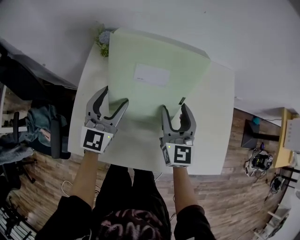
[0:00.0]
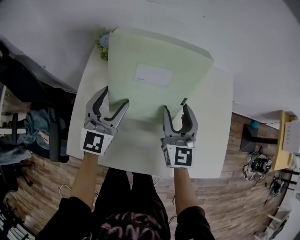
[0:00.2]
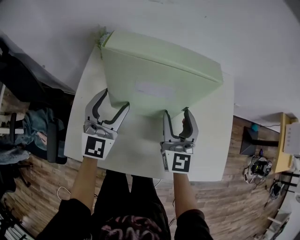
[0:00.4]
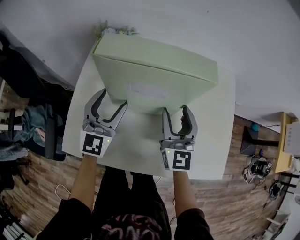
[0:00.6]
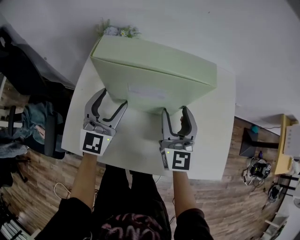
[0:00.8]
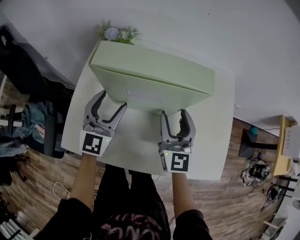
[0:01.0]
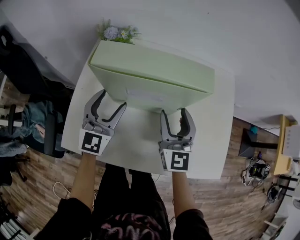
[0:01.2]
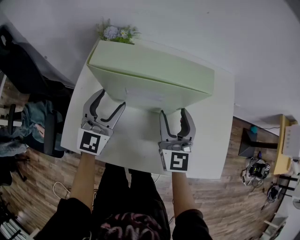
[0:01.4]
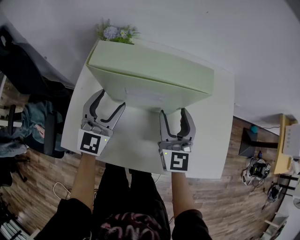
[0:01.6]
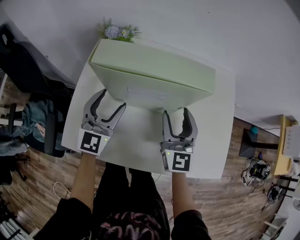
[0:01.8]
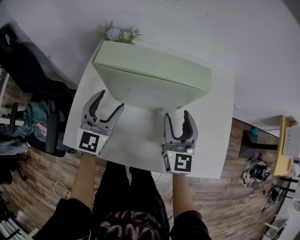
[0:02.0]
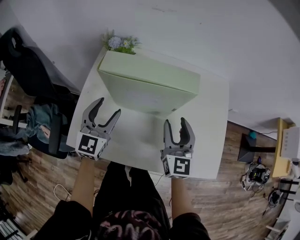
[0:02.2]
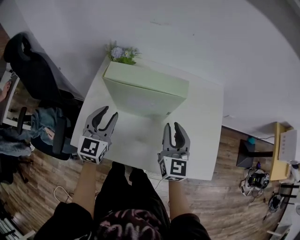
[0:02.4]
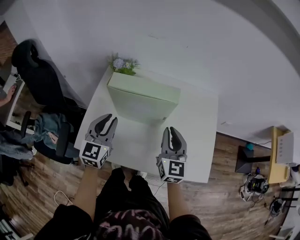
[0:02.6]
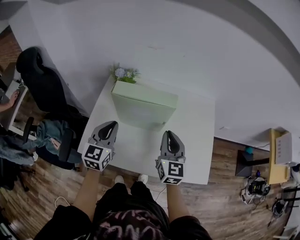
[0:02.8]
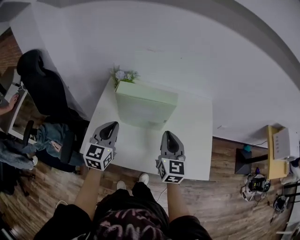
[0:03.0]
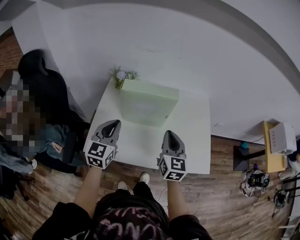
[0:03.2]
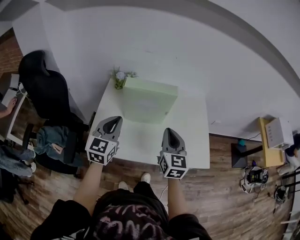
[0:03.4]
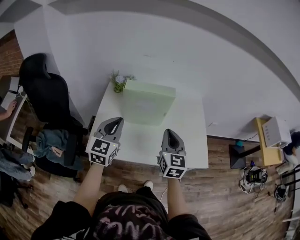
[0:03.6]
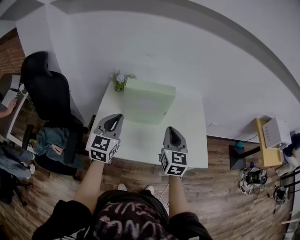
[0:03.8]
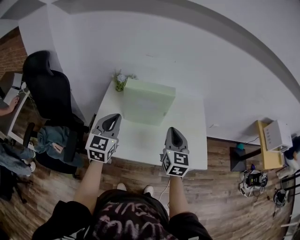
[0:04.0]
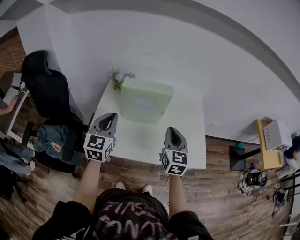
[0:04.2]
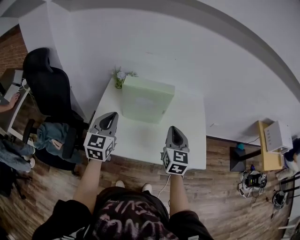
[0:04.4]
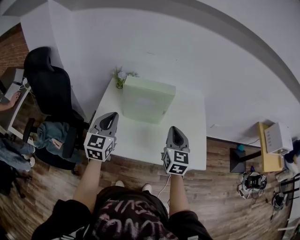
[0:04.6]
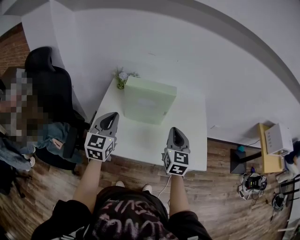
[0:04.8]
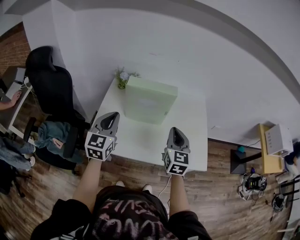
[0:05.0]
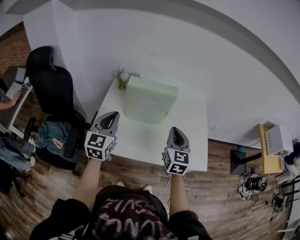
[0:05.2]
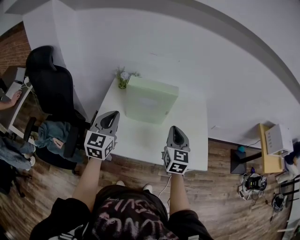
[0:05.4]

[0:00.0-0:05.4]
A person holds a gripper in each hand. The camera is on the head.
0:00.0 to 0:01.4: The grippers stay close to where they were, moving slightly.
0:01.4 to 0:02.8: Both grippers travel together upward and backward, roughly 10 cm. The left gripper closes its fingers. The right gripper closes up.
0:02.8 to 0:04.0: The left gripper travels upward and backward by approximately 10 cm; the right gripper travels backward and upward by roughly 10 cm.
0:04.0 to 0:05.4: The grippers move only a little.

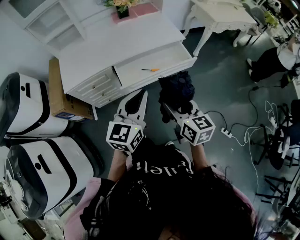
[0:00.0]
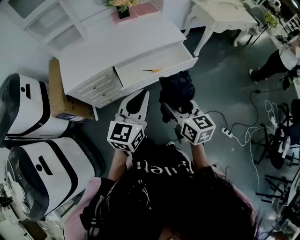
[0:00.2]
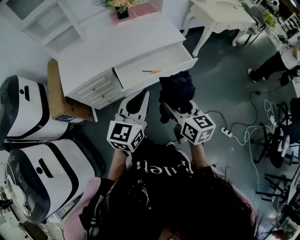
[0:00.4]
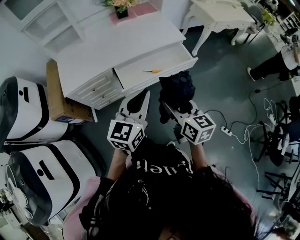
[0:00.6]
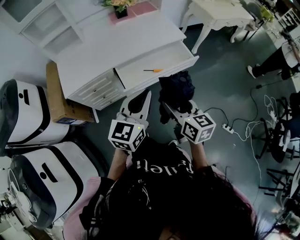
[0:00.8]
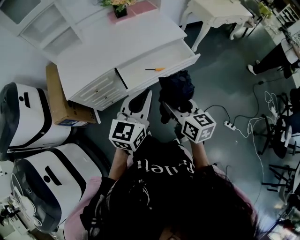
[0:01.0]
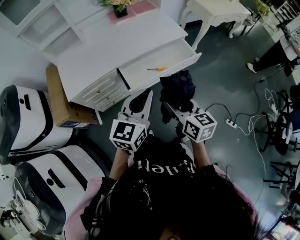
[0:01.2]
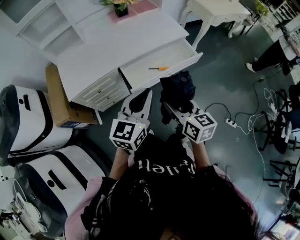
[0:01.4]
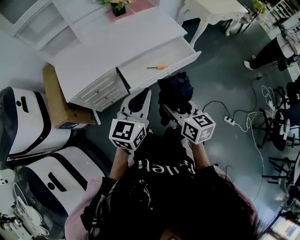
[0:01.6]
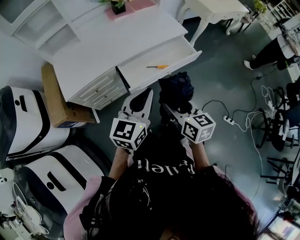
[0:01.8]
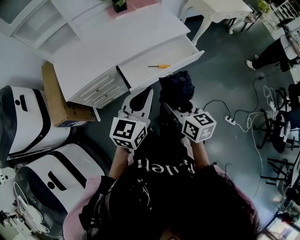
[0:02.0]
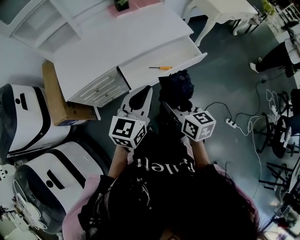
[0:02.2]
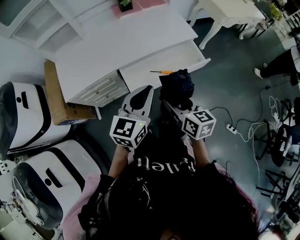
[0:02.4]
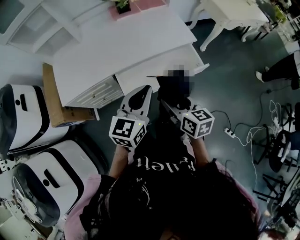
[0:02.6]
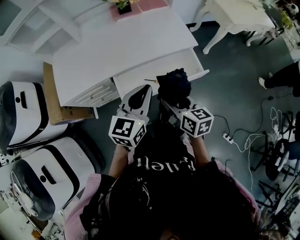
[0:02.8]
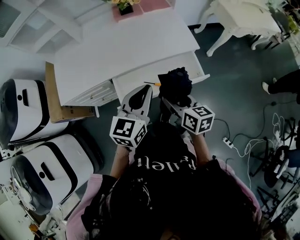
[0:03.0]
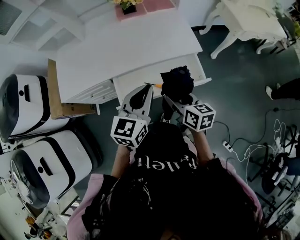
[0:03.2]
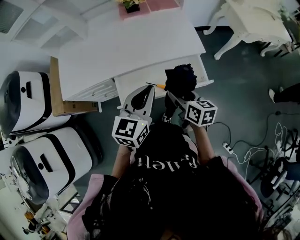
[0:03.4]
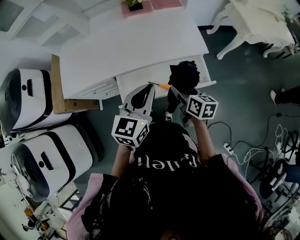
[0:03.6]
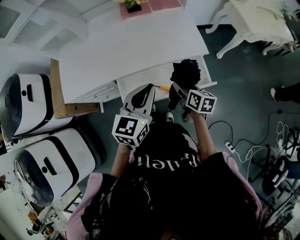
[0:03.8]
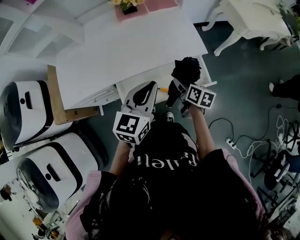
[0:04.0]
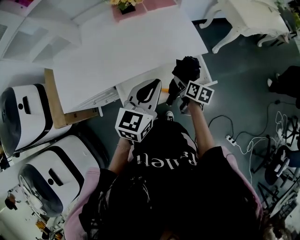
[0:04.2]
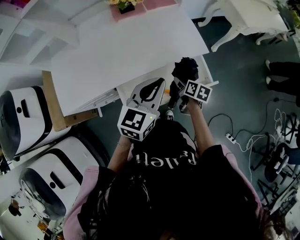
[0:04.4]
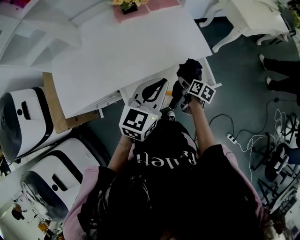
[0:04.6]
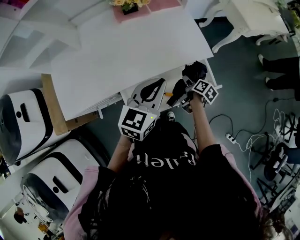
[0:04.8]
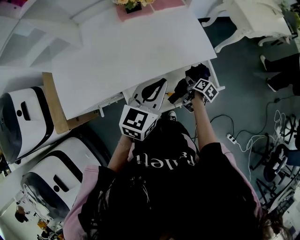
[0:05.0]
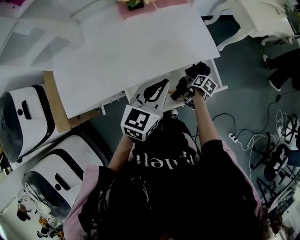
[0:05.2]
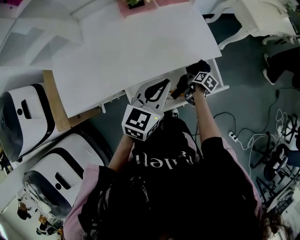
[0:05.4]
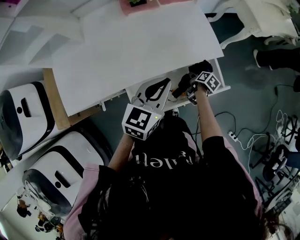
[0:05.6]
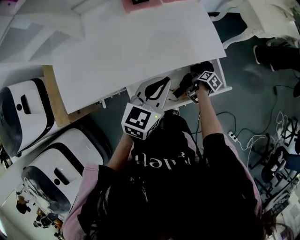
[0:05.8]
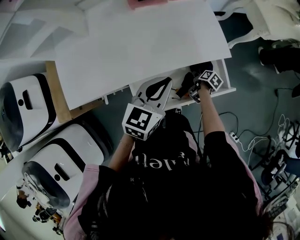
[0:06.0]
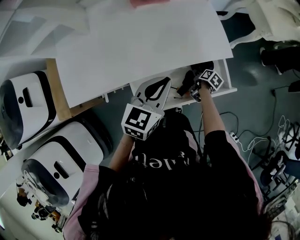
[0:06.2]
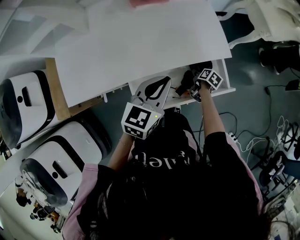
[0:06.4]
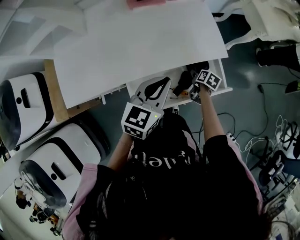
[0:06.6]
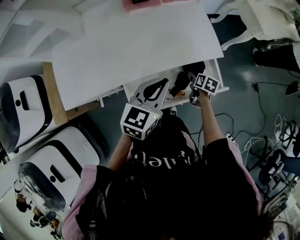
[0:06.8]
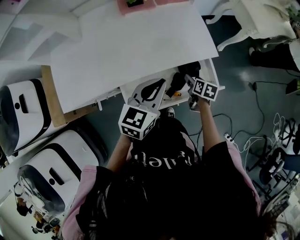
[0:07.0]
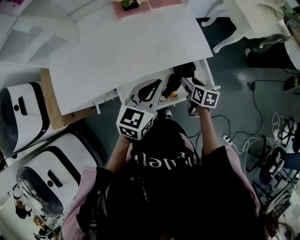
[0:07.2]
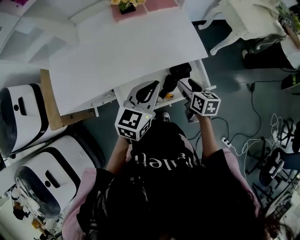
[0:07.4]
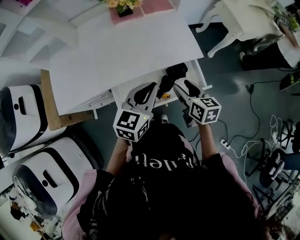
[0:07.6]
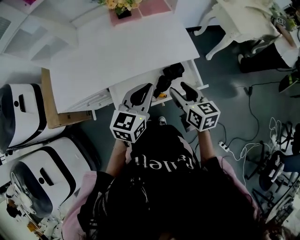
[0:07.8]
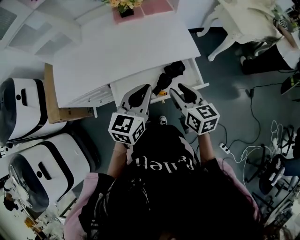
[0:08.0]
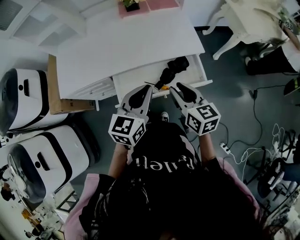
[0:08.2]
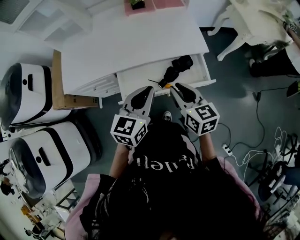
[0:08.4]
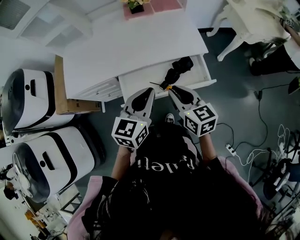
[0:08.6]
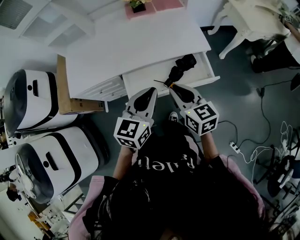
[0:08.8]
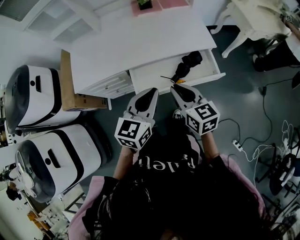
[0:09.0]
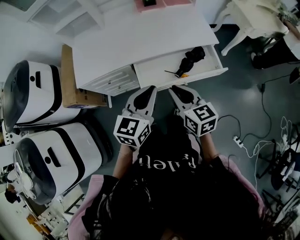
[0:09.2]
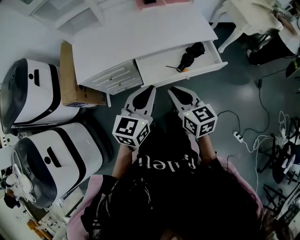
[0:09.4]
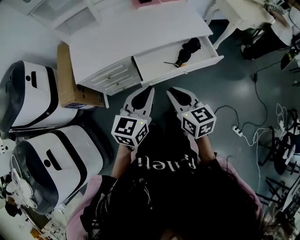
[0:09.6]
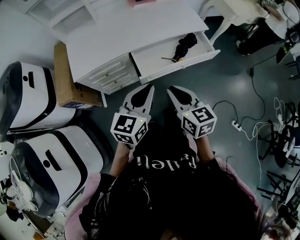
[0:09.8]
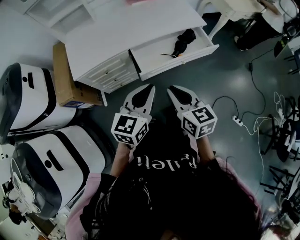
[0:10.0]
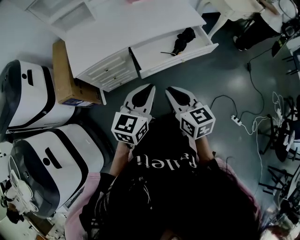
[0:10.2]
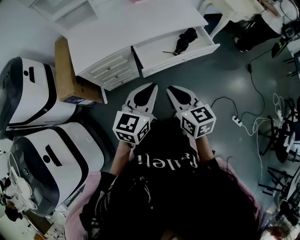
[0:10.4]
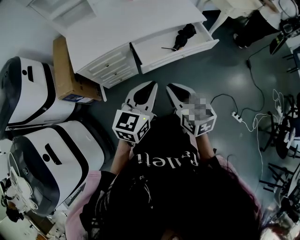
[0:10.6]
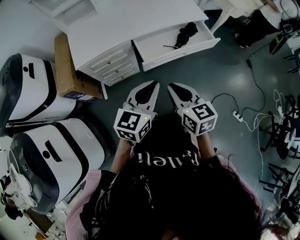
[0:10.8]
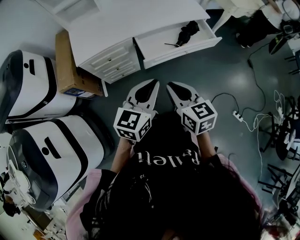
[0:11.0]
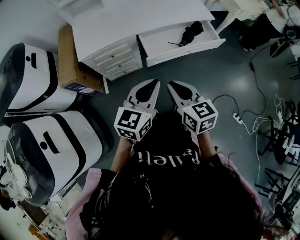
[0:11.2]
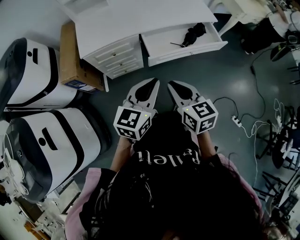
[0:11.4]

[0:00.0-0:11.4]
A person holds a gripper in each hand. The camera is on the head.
0:00.0 to 0:01.4: Both grippers move to the left, about 10 cm.
0:01.4 to 0:02.8: Both grippers travel together forward and to the right, approximately 20 cm.
0:02.8 to 0:04.2: The left gripper heads forward, covering about 10 cm. Meanwhile the right gripper is displaced forward, downward and to the right by roughly 25 cm, and turns by about 30 degrees.
0:04.2 to 0:05.6: The right gripper moves downward, approximately 15 cm, and swivels roughly 30 degrees, while the left gripper is displaced to the left and forward by approximately 10 cm.
0:05.6 to 0:07.2: The right gripper goes some 15 cm upward, and rotates about 40 degrees.
0:07.2 to 0:08.6: The right gripper heads upward, backward and to the left, covering roughly 25 cm, rotates roughly 40 degrees, and closes its fingers. Meanwhile the left gripper travels backward by approximately 15 cm.
0:08.6 to 0:10.0: Both grippers travel together backward and to the left, roughly 25 cm.
0:10.0 to 0:11.4: Both grippers move backward, approximately 5 cm.

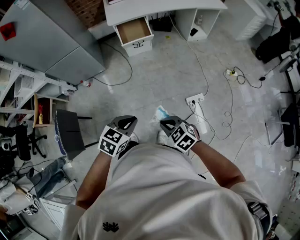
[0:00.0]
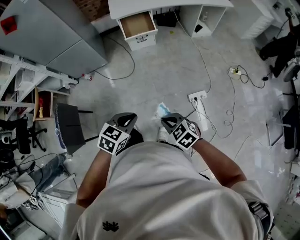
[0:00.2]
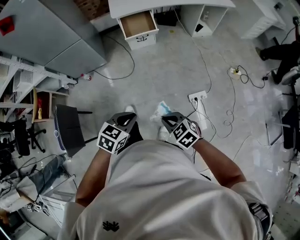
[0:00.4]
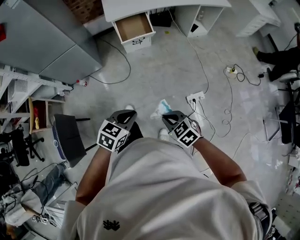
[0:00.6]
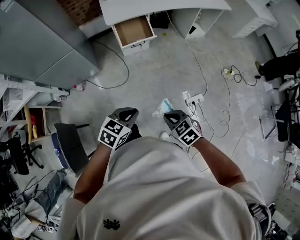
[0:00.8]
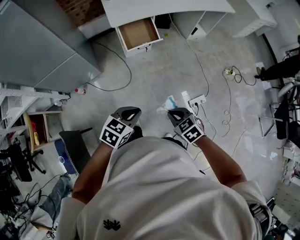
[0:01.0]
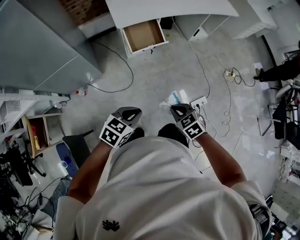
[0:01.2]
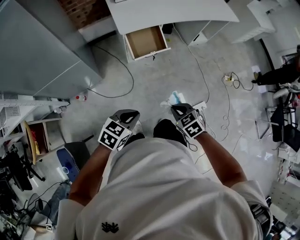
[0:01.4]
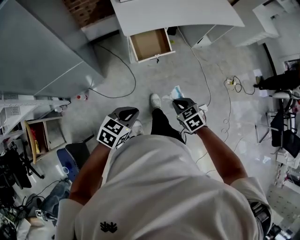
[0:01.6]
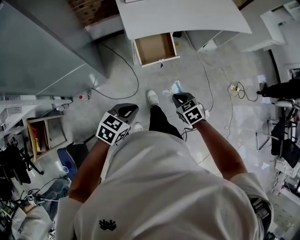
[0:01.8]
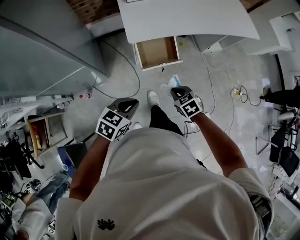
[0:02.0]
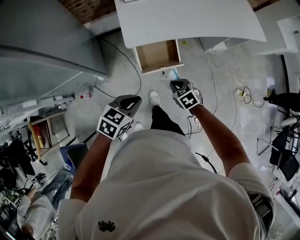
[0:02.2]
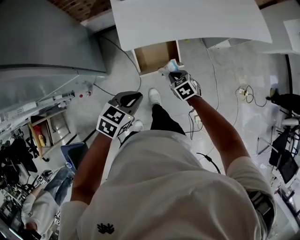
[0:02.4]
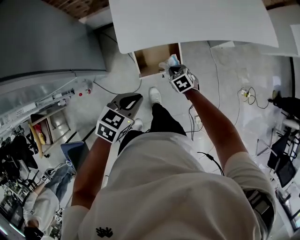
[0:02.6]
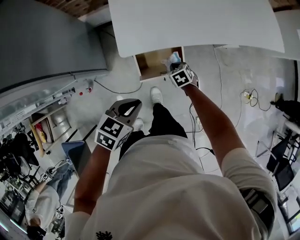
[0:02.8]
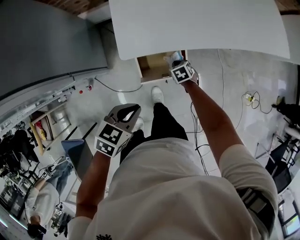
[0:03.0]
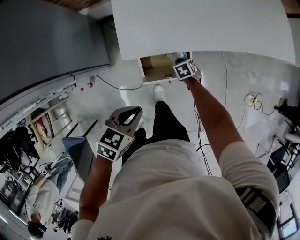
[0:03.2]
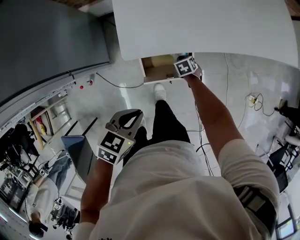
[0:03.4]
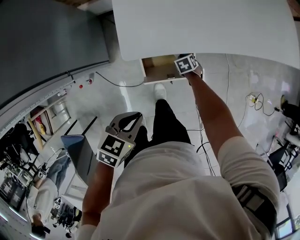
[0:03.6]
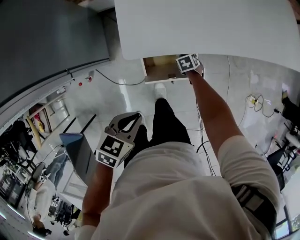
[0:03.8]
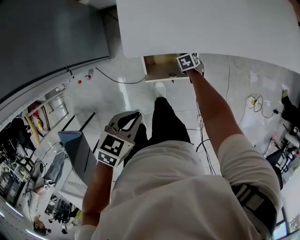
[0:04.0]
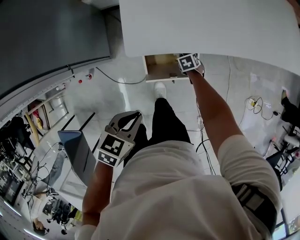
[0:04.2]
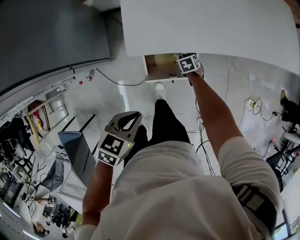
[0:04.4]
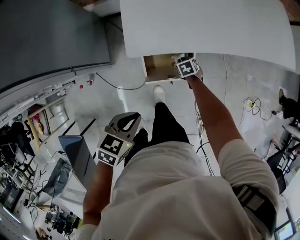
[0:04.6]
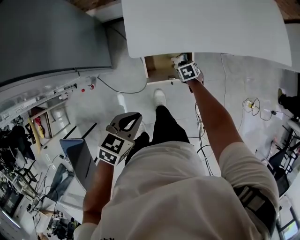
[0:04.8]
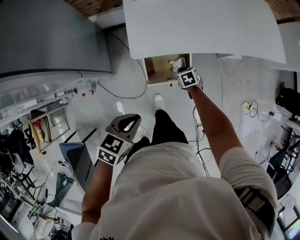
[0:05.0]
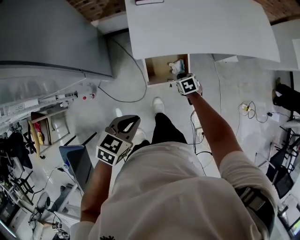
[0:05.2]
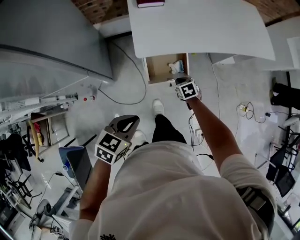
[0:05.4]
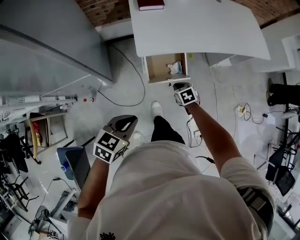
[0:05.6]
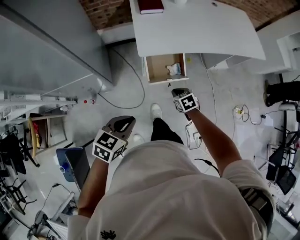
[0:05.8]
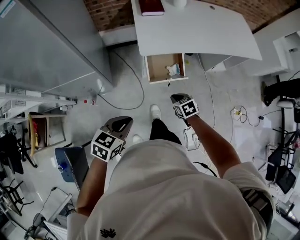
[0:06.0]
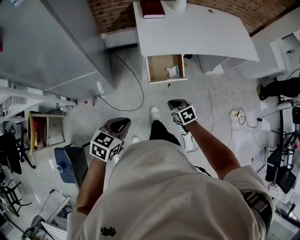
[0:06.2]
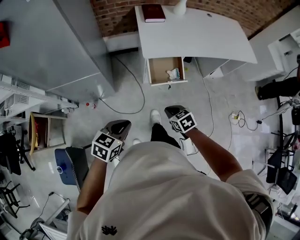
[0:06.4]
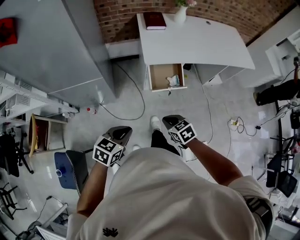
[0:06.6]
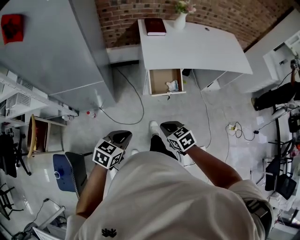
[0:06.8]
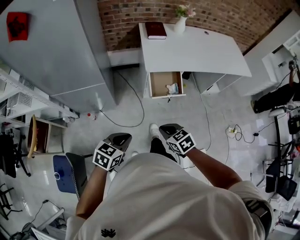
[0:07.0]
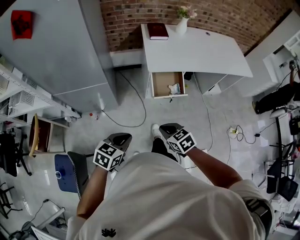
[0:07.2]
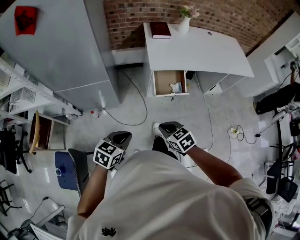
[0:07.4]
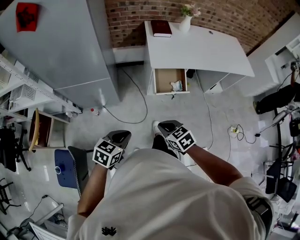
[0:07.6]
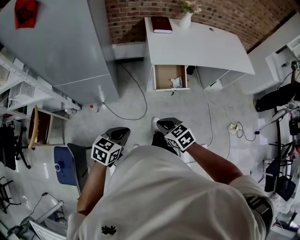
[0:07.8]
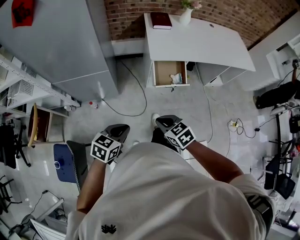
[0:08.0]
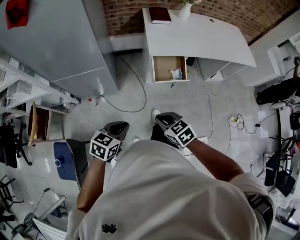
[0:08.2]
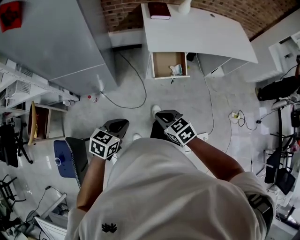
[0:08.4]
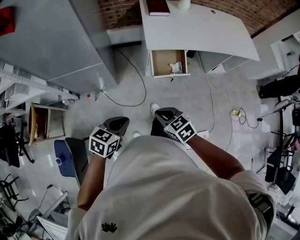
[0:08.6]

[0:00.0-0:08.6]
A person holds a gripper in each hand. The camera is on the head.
0:00.0 to 0:01.4: The pair of grippers is taken forward and to the left, approximately 40 cm. The right gripper rotates approximately 20 degrees.
0:01.4 to 0:02.8: The pair of grippers is taken forward, some 50 cm. The right gripper travels downward by roughly 25 cm.
0:02.8 to 0:04.4: The right gripper travels downward by roughly 15 cm; the left gripper heads downward, covering about 5 cm.
0:04.4 to 0:05.8: The right gripper goes some 40 cm backward and upward. The left gripper goes about 25 cm backward and upward.
0:05.8 to 0:07.2: The left gripper moves backward and to the left, roughly 20 cm. Meanwhile the right gripper is displaced backward, to the left and upward by some 35 cm.
0:07.2 to 0:08.6: The grippers move only a little.
